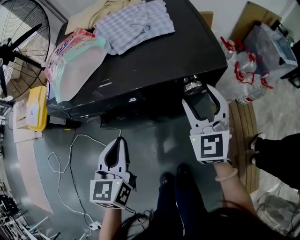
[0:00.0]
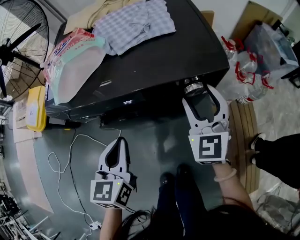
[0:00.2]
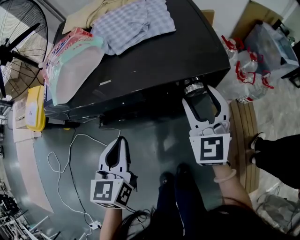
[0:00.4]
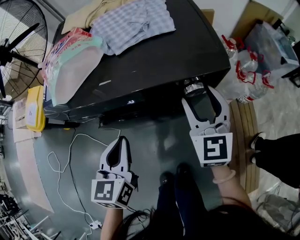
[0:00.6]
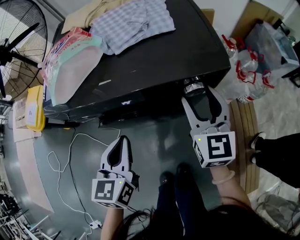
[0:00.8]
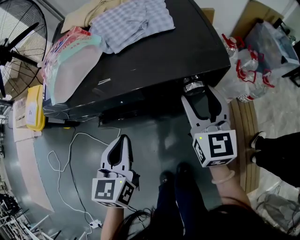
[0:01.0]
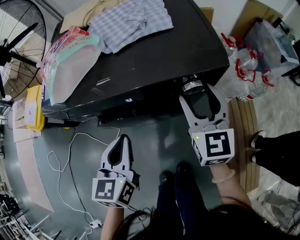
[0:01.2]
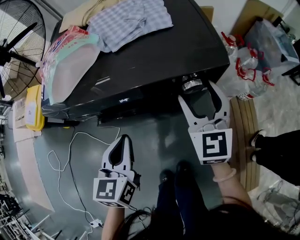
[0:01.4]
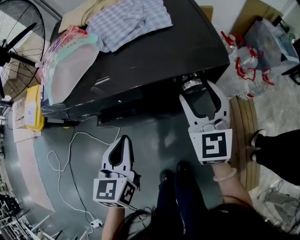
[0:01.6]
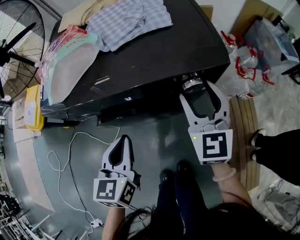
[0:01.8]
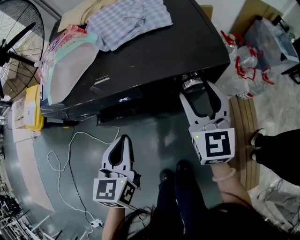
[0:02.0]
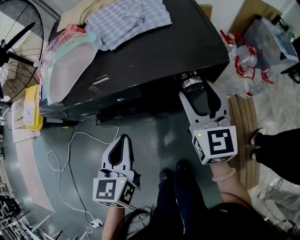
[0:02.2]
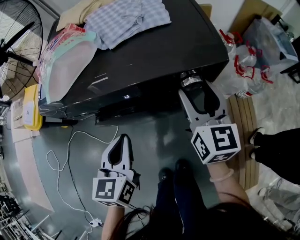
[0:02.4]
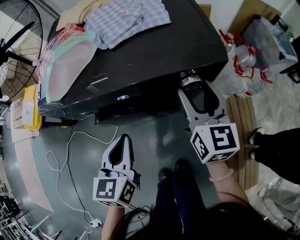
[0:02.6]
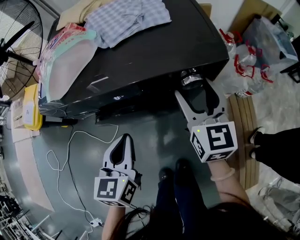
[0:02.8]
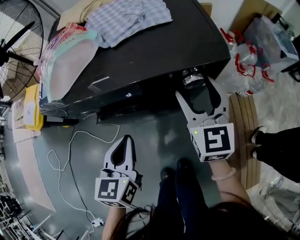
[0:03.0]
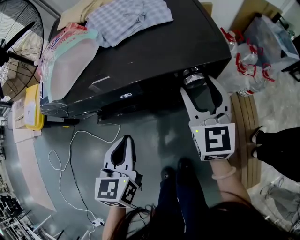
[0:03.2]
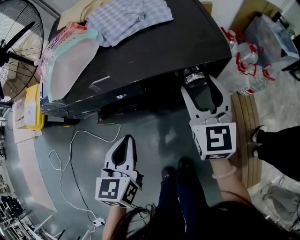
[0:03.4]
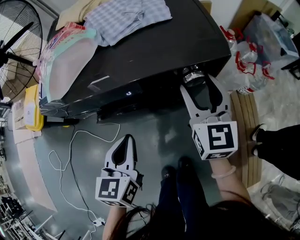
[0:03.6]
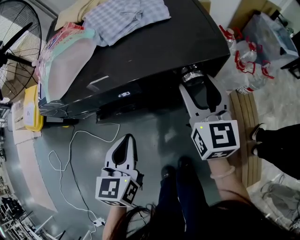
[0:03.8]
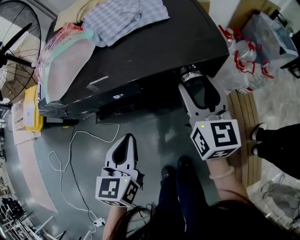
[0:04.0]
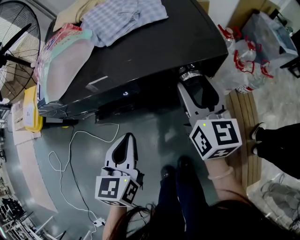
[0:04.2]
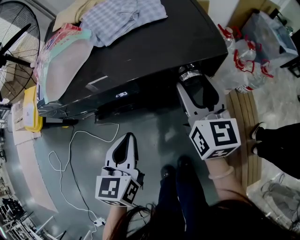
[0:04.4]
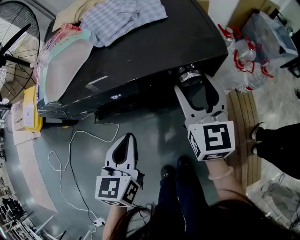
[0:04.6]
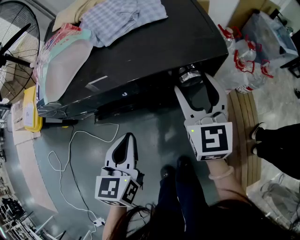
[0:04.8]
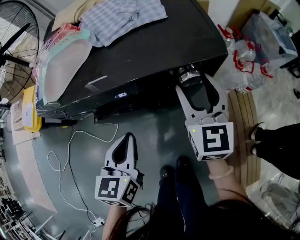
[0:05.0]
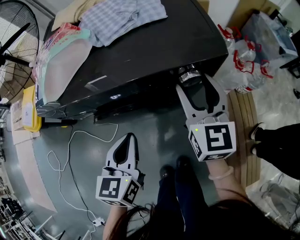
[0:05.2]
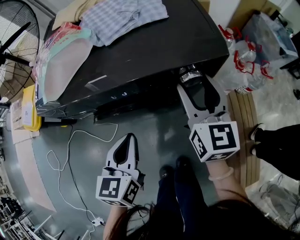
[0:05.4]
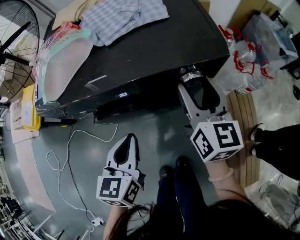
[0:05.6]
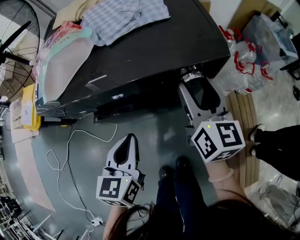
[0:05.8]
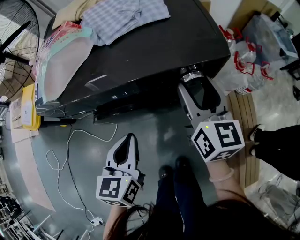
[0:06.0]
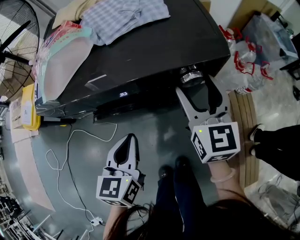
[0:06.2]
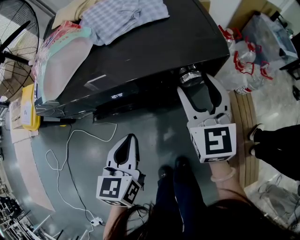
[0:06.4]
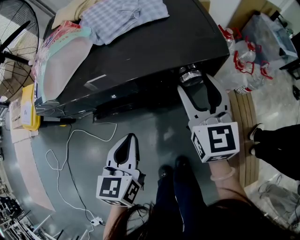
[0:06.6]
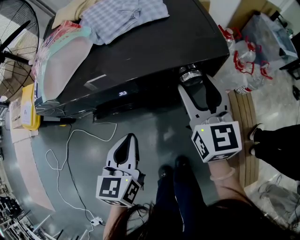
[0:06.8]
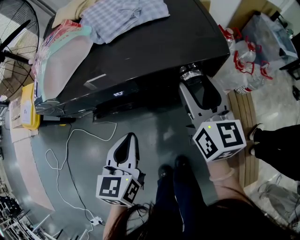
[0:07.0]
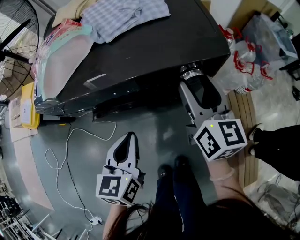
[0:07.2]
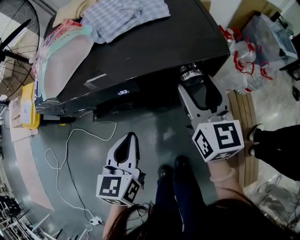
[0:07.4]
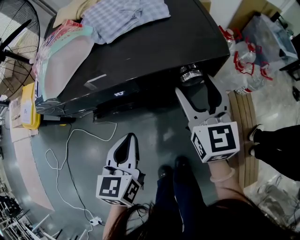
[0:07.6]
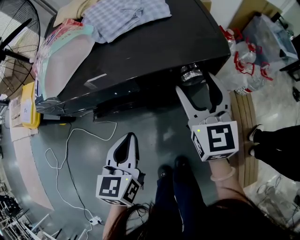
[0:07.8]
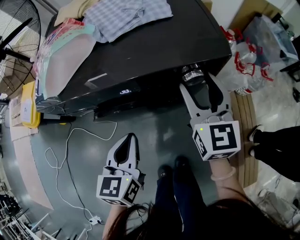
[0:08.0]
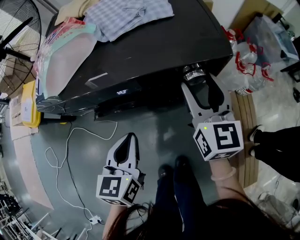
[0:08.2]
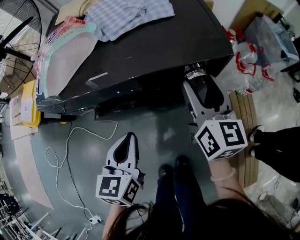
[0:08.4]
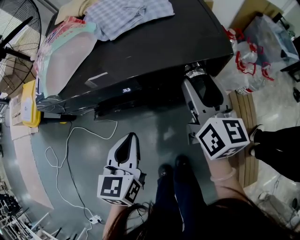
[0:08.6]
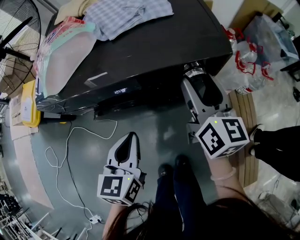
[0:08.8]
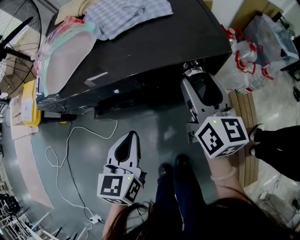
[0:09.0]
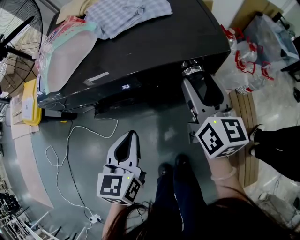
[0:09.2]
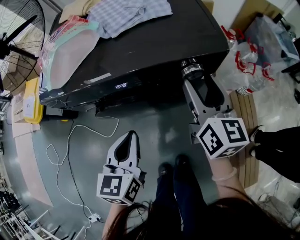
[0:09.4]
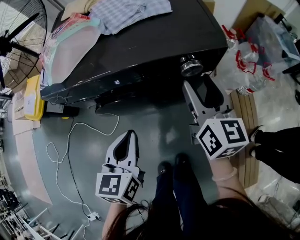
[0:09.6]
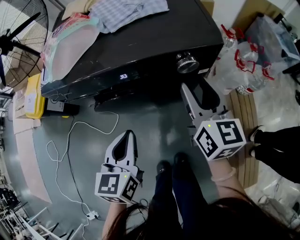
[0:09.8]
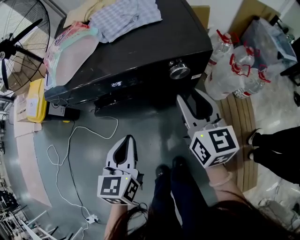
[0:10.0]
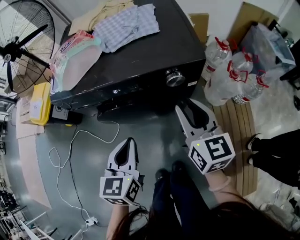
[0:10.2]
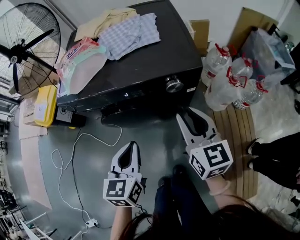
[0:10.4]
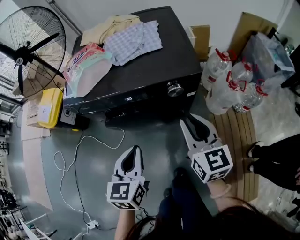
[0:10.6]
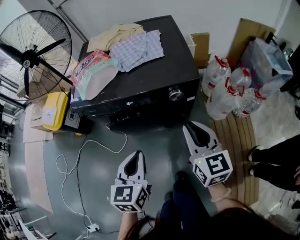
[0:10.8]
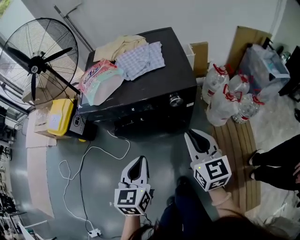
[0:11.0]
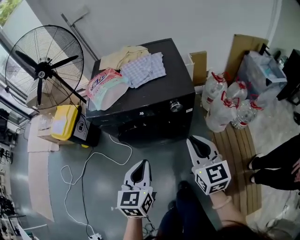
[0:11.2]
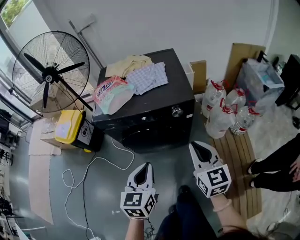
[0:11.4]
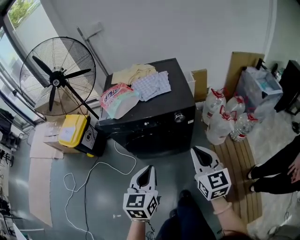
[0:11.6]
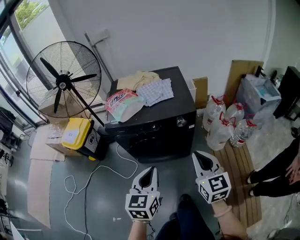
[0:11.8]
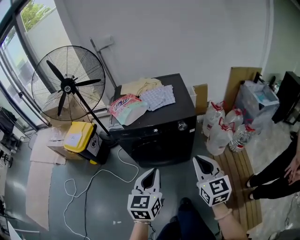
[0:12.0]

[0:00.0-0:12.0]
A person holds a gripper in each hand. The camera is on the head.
0:04.4 to 0:06.0: The grippers move only a little.
0:07.6 to 0:09.0: The right gripper rotates approximately 20 degrees.
0:09.0 to 0:10.4: The left gripper moves upward and backward, some 10 cm. Meanwhile the right gripper travels backward by approximately 10 cm, and closes.
0:10.4 to 0:12.0: The left gripper is displaced upward and backward by about 25 cm, while the right gripper travels backward and upward by roughly 25 cm.

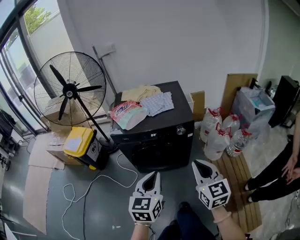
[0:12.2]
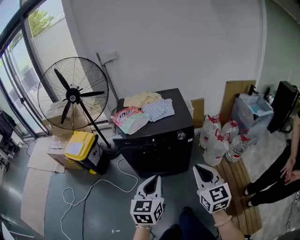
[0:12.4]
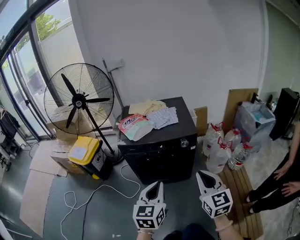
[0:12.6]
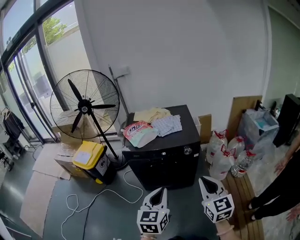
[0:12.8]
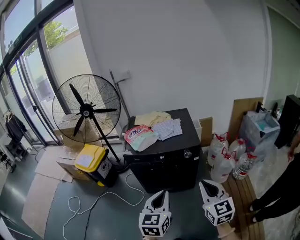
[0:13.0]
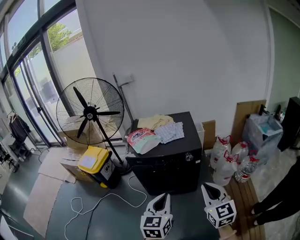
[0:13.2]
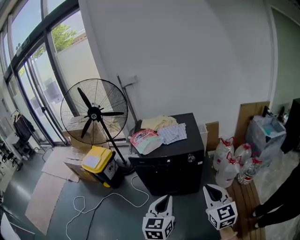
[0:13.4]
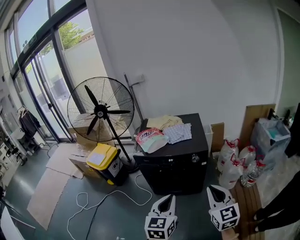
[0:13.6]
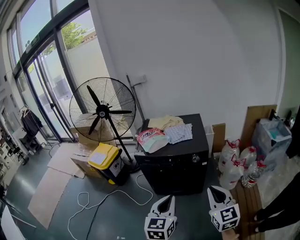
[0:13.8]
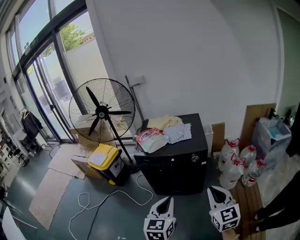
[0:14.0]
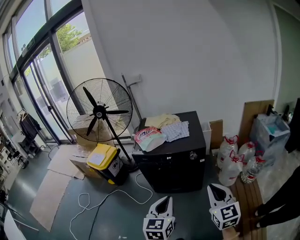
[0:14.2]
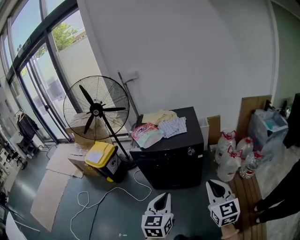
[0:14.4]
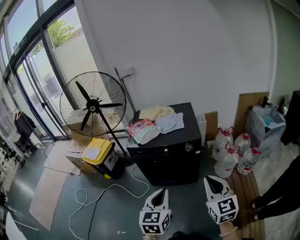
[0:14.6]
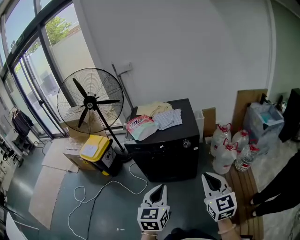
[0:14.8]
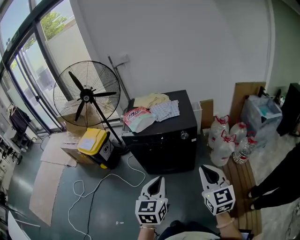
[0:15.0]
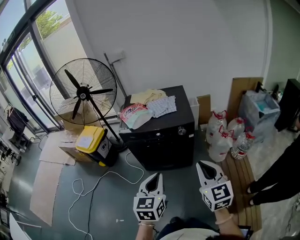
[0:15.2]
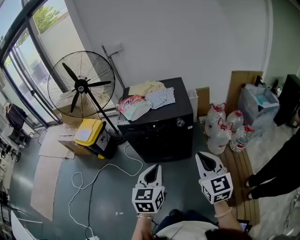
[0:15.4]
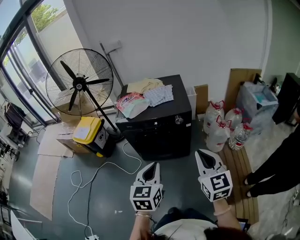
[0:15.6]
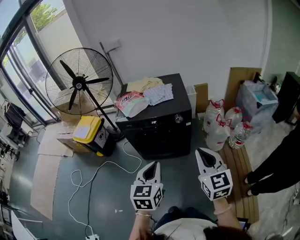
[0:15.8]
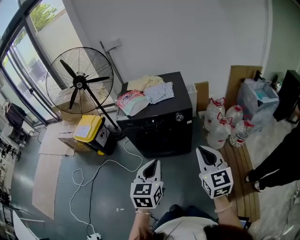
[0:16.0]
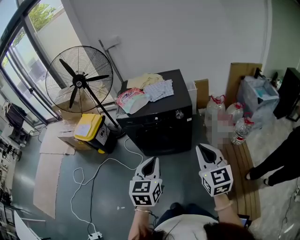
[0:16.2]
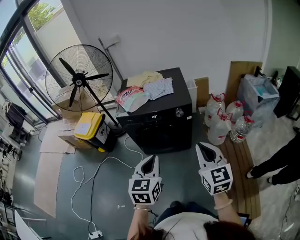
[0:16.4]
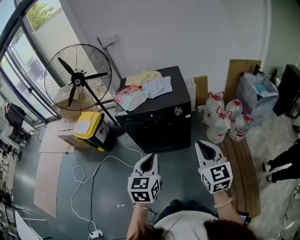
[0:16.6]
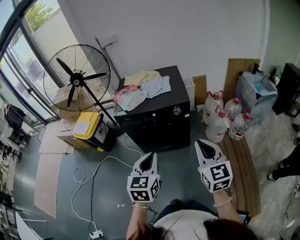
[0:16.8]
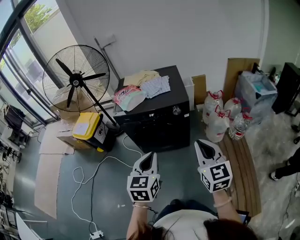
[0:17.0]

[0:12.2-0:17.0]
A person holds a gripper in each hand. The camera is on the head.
0:12.2 to 0:13.8: The right gripper is displaced upward and backward by some 10 cm, while the left gripper moves backward and upward, approximately 10 cm.
0:13.8 to 0:17.0: The grippers move only a little.

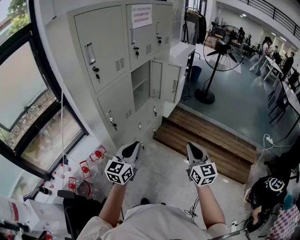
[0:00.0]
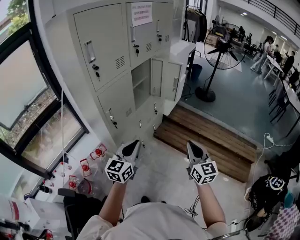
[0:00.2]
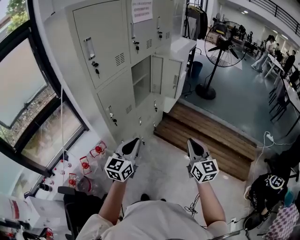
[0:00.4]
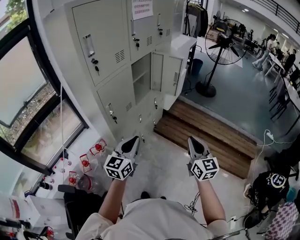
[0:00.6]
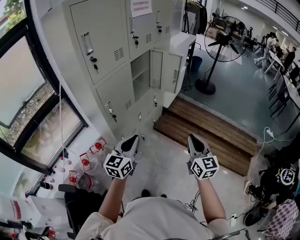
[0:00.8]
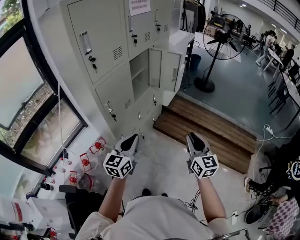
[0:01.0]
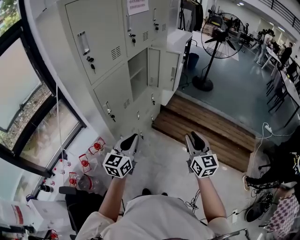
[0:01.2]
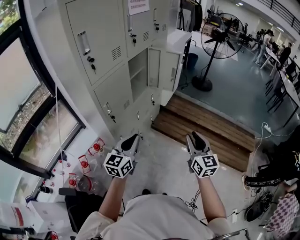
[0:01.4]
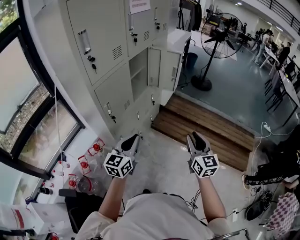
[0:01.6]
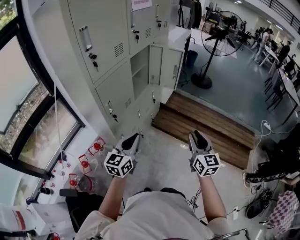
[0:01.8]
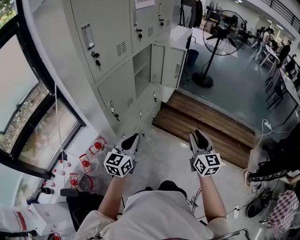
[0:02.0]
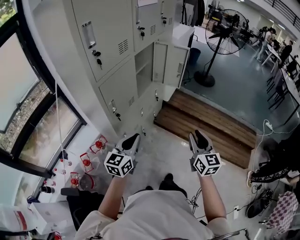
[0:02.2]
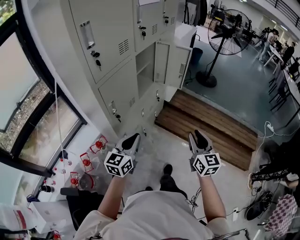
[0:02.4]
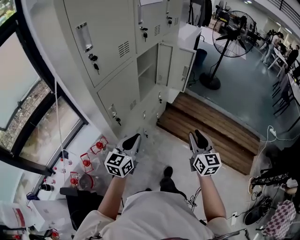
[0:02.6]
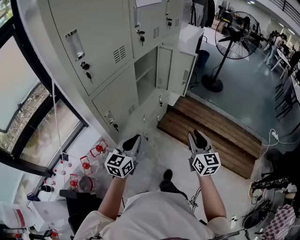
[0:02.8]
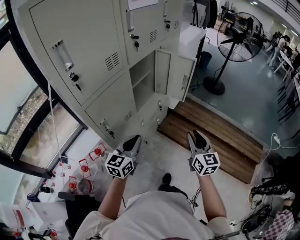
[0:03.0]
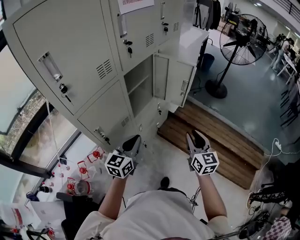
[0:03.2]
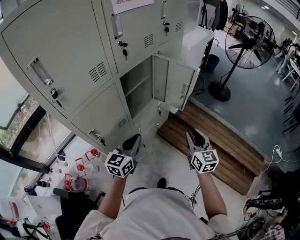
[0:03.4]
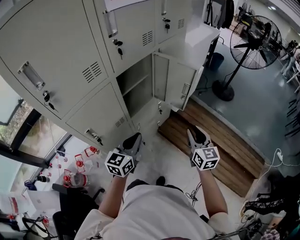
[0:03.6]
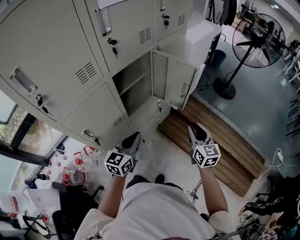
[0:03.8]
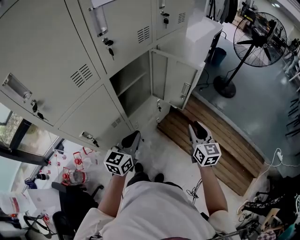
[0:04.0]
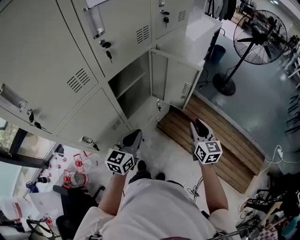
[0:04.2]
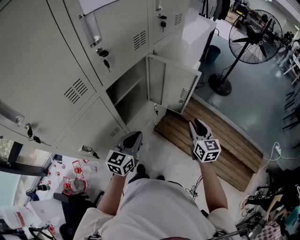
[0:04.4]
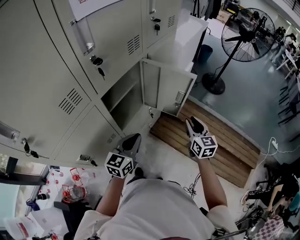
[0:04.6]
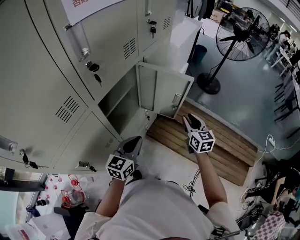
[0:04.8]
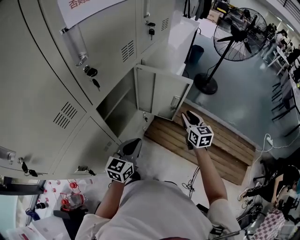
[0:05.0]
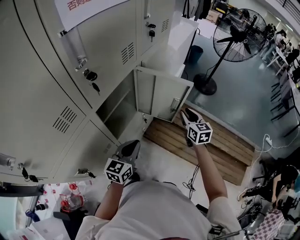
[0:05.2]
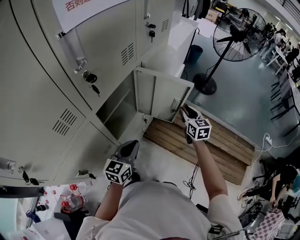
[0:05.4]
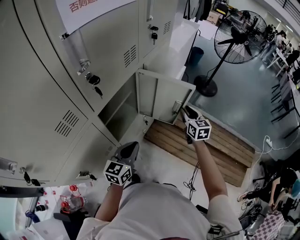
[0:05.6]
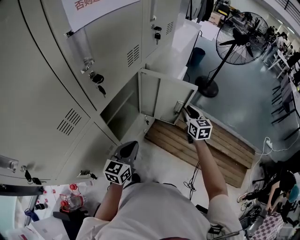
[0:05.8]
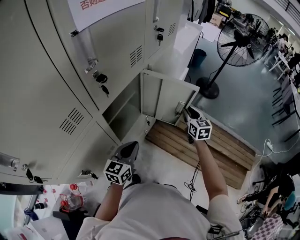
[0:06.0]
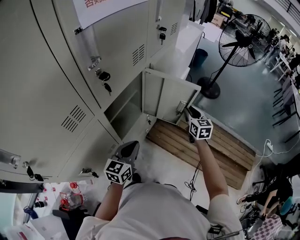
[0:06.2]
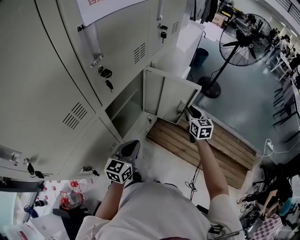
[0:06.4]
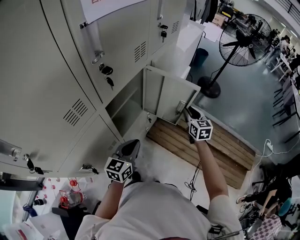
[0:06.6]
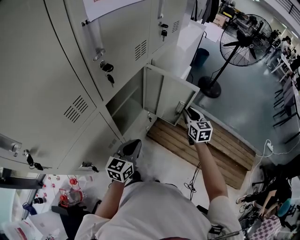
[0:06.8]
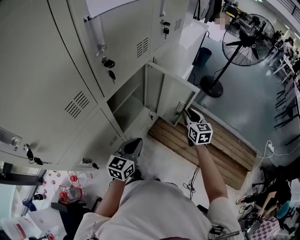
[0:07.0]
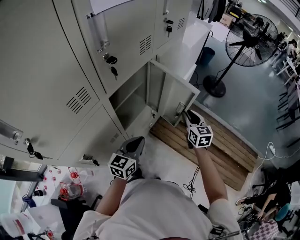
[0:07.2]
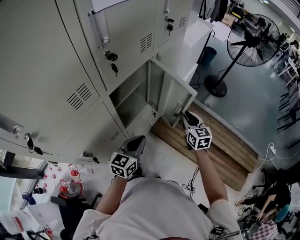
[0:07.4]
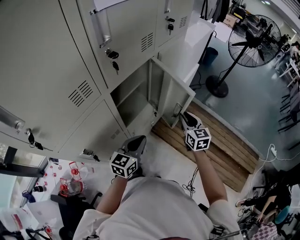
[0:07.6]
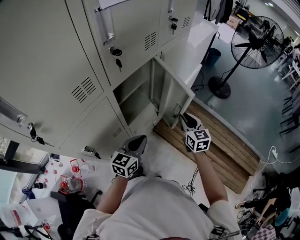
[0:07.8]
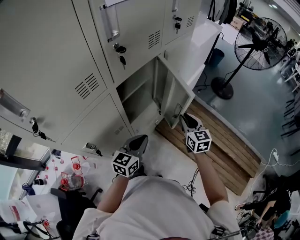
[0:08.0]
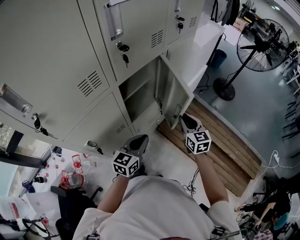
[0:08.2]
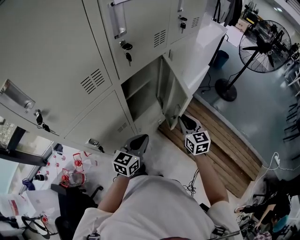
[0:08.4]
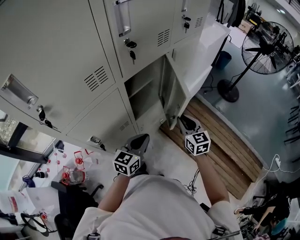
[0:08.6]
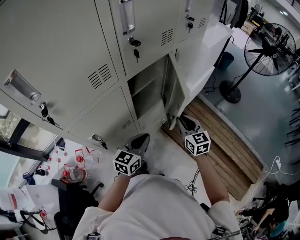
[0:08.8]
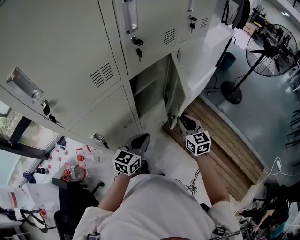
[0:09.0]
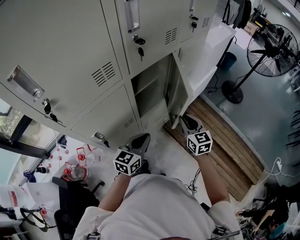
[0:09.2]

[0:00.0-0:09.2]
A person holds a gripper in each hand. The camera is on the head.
0:00.0 to 0:01.6: The right gripper opens its fingers.
0:01.6 to 0:03.0: The grippers both shift forward by about 15 cm.
0:03.0 to 0:04.6: The two grippers go roughly 25 cm forward.
0:04.6 to 0:06.2: The right gripper moves forward, some 10 cm.
0:06.2 to 0:07.6: The right gripper travels backward and to the left by some 10 cm.
0:07.6 to 0:09.2: The left gripper moves about 5 cm, while the right gripper is displaced to the left by roughly 10 cm.
